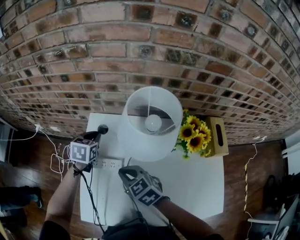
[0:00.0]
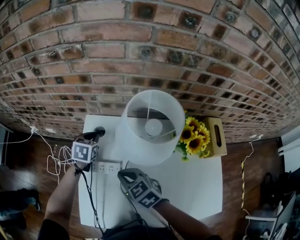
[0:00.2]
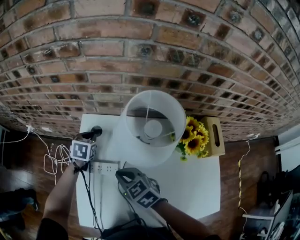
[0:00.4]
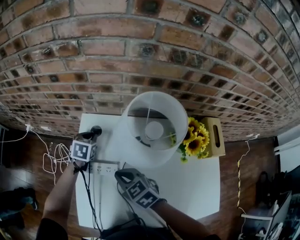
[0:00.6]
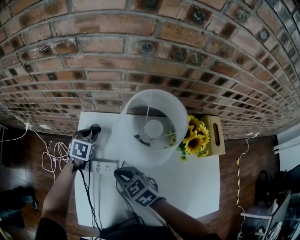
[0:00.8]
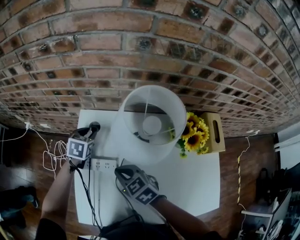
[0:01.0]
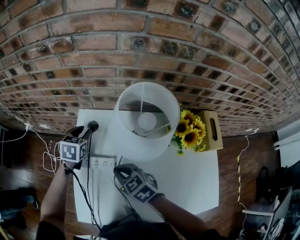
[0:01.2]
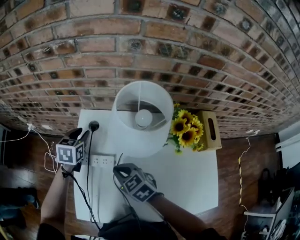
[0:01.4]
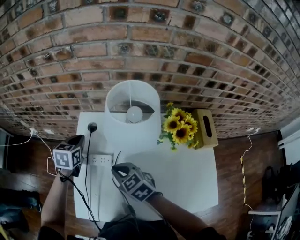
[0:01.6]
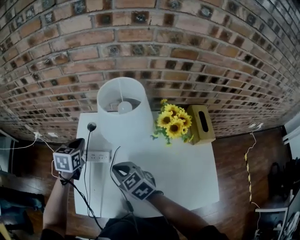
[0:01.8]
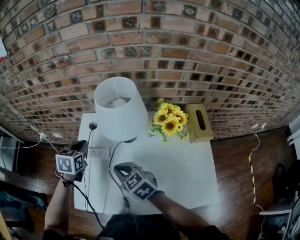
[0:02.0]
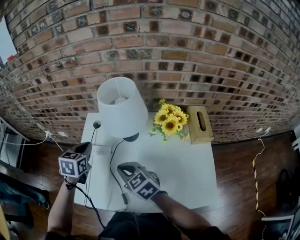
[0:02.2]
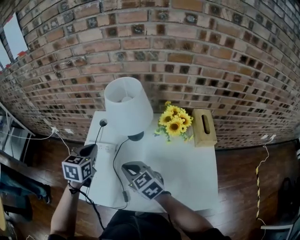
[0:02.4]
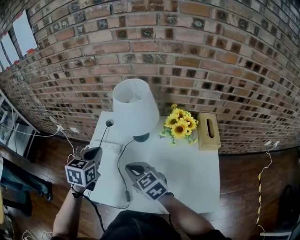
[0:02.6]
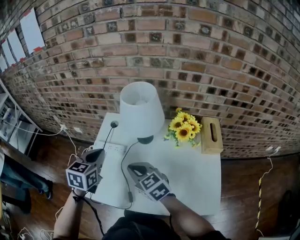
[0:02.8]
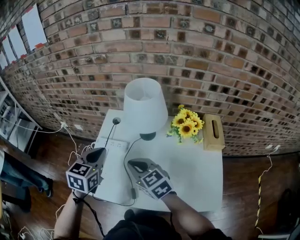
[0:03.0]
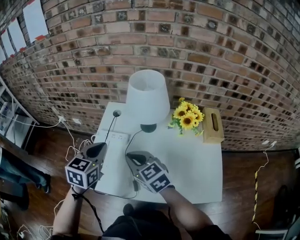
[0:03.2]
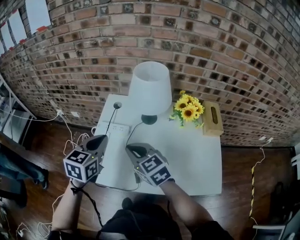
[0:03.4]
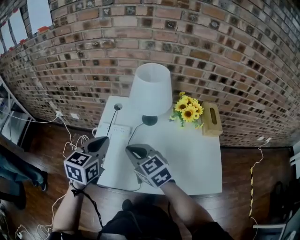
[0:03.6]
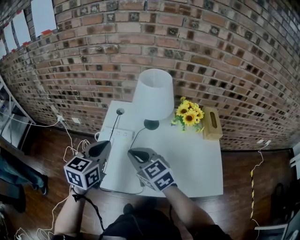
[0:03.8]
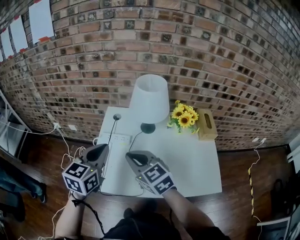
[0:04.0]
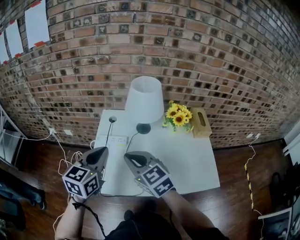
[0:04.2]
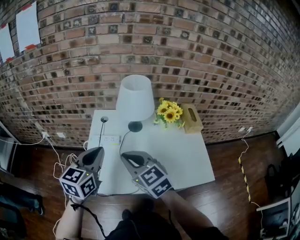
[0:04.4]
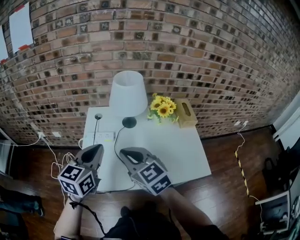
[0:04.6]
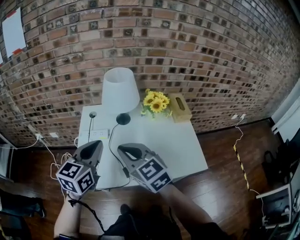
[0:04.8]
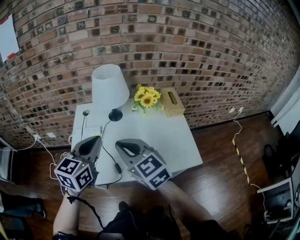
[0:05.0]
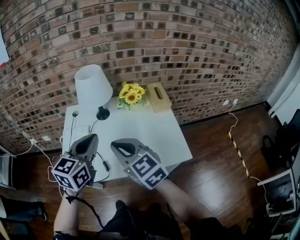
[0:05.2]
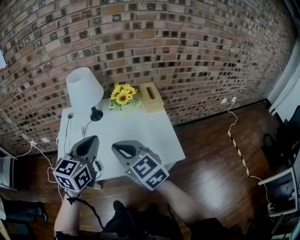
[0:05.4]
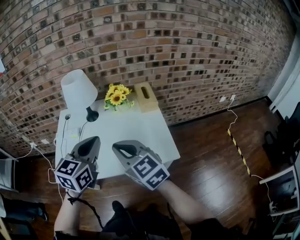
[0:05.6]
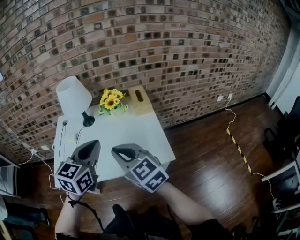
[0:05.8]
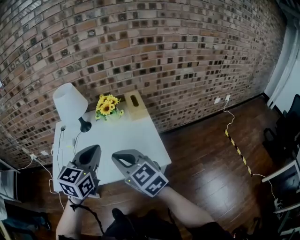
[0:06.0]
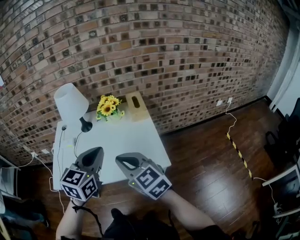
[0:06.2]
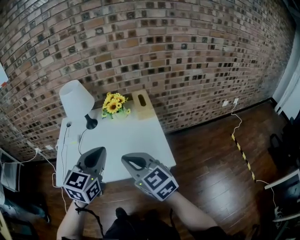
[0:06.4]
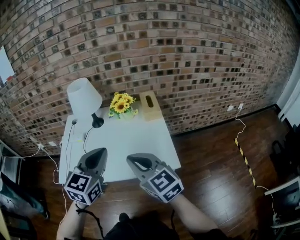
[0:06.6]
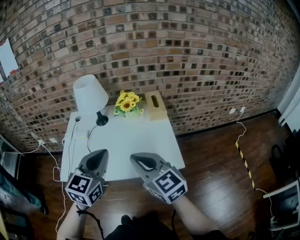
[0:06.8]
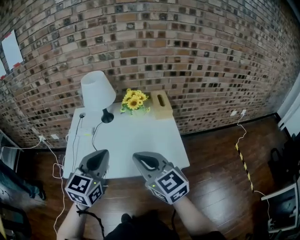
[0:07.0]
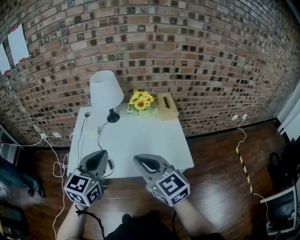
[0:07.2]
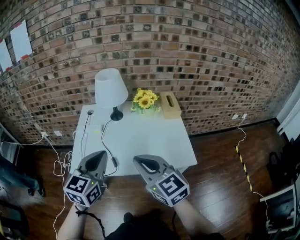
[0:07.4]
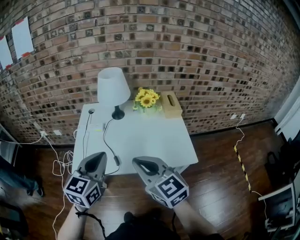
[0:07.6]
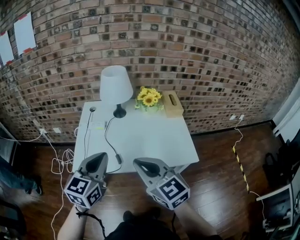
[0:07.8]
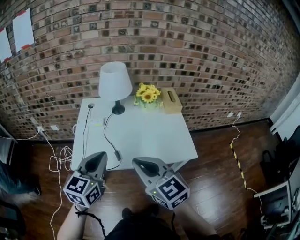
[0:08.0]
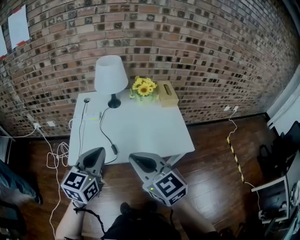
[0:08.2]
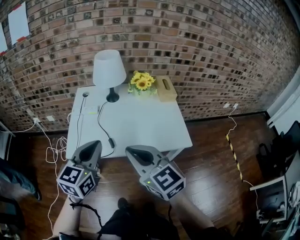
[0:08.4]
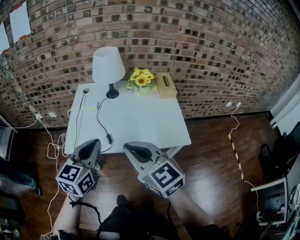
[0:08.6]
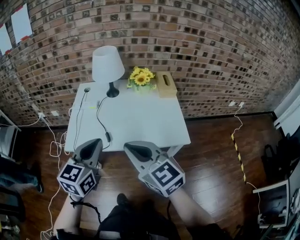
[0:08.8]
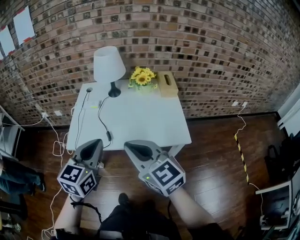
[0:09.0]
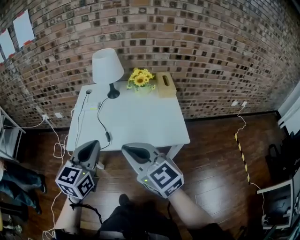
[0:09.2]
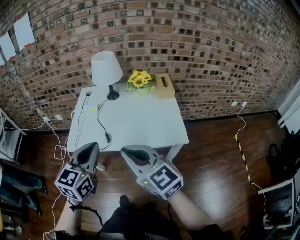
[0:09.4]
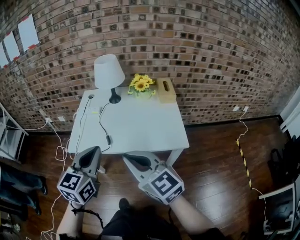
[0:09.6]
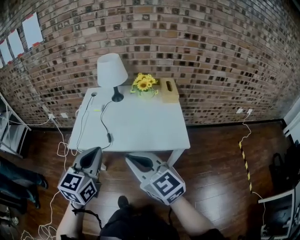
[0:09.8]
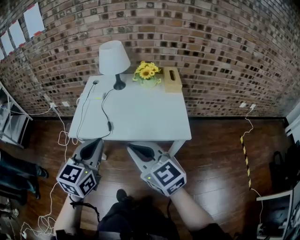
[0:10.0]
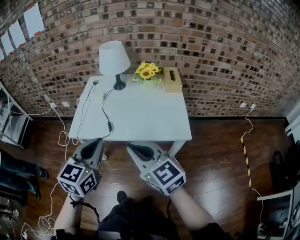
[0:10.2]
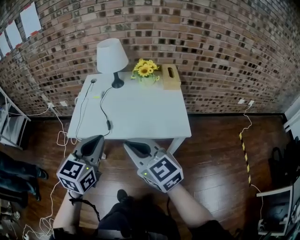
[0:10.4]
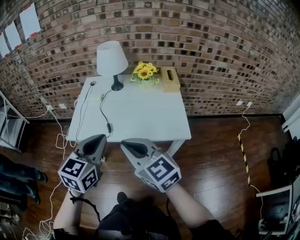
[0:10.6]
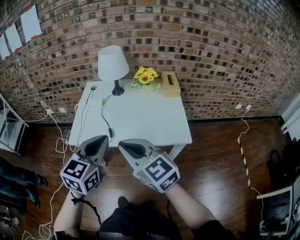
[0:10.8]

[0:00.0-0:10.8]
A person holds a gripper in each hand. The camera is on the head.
0:00.0 to 0:01.6: The left gripper travels downward and back again, roughly 5 cm each way, and opens, then closes again.
0:01.6 to 0:03.0: The right gripper goes approximately 15 cm backward and upward, while the left gripper is displaced backward and upward by some 25 cm.
0:03.0 to 0:04.6: The right gripper travels upward and backward by approximately 10 cm, while the left gripper moves backward and upward, some 10 cm, and turns by some 20 degrees.
0:04.6 to 0:06.2: The right gripper goes roughly 30 cm to the right and backward; the left gripper heads to the right, covering approximately 30 cm.
0:06.2 to 0:07.8: Both grippers move to the left, about 20 cm.
0:07.8 to 0:09.2: The two grippers go approximately 5 cm backward.
0:09.2 to 0:10.8: The grippers make only small movements.

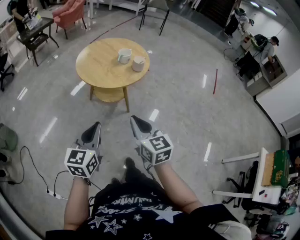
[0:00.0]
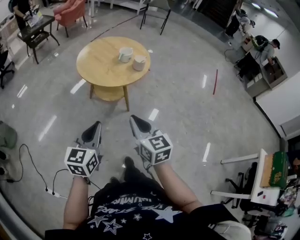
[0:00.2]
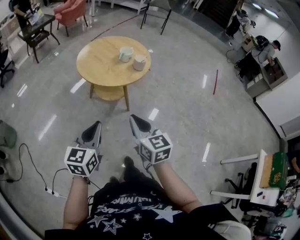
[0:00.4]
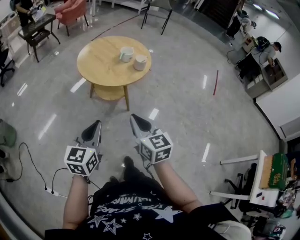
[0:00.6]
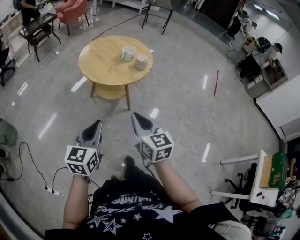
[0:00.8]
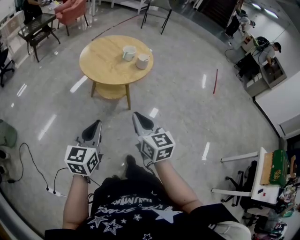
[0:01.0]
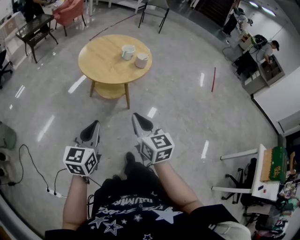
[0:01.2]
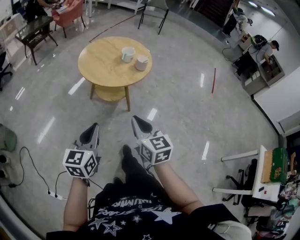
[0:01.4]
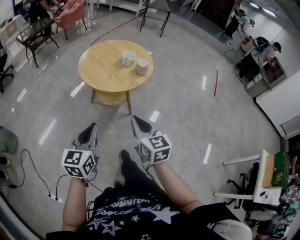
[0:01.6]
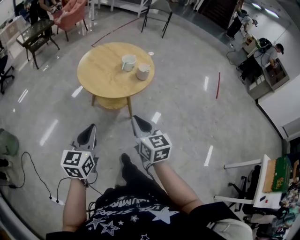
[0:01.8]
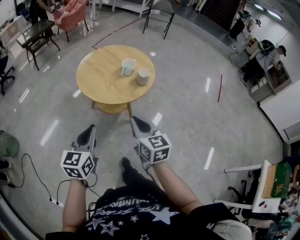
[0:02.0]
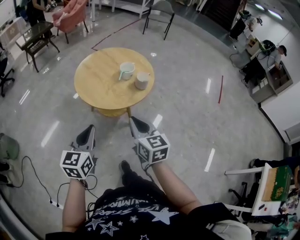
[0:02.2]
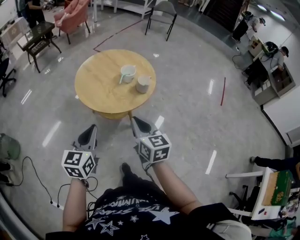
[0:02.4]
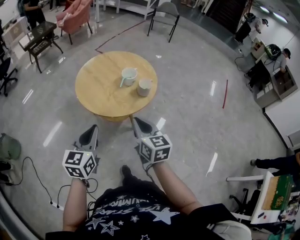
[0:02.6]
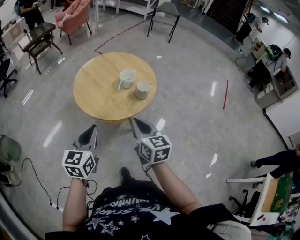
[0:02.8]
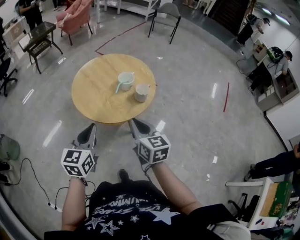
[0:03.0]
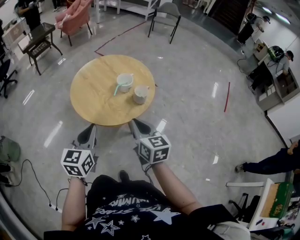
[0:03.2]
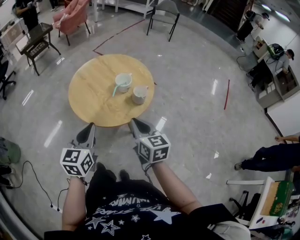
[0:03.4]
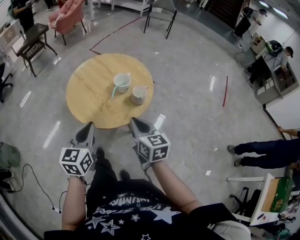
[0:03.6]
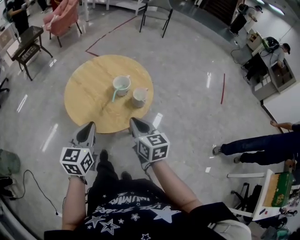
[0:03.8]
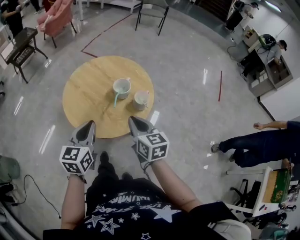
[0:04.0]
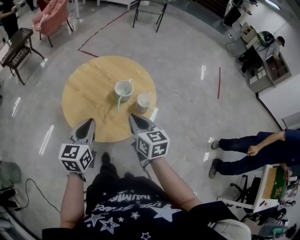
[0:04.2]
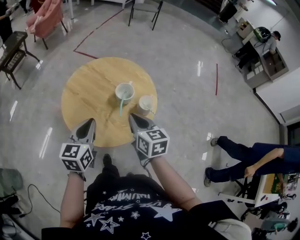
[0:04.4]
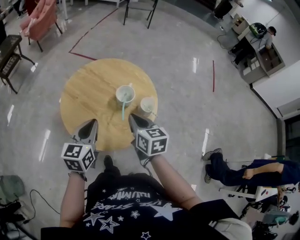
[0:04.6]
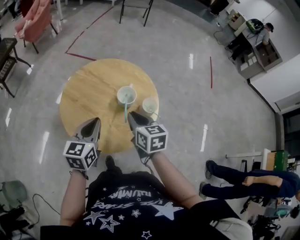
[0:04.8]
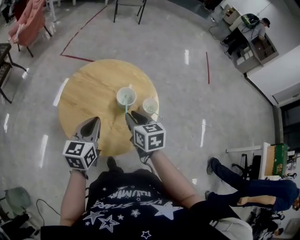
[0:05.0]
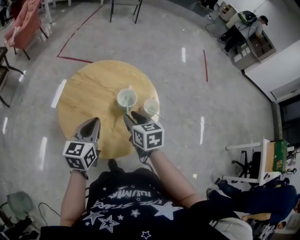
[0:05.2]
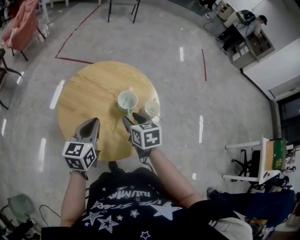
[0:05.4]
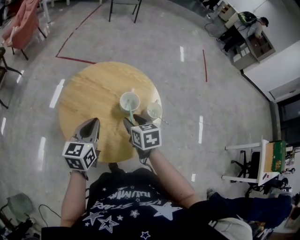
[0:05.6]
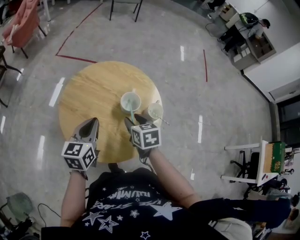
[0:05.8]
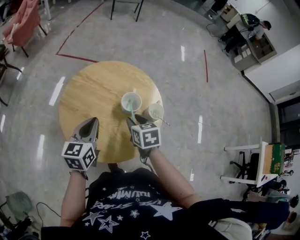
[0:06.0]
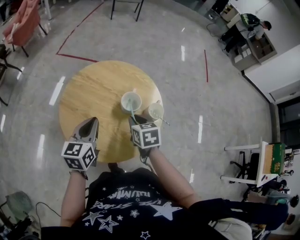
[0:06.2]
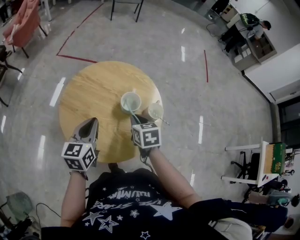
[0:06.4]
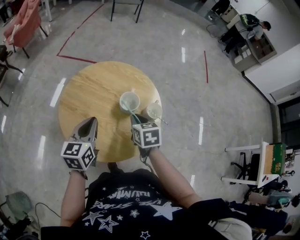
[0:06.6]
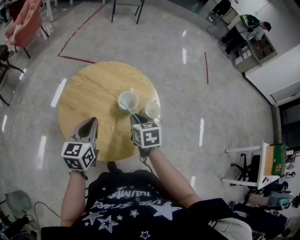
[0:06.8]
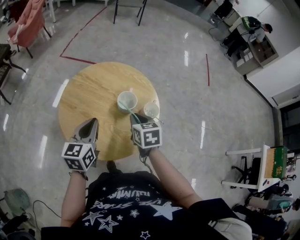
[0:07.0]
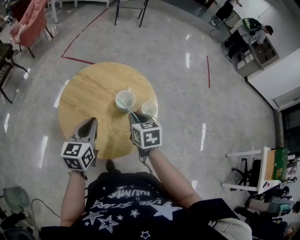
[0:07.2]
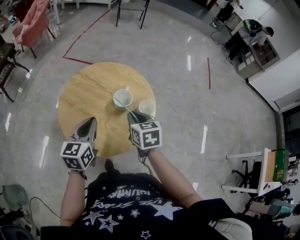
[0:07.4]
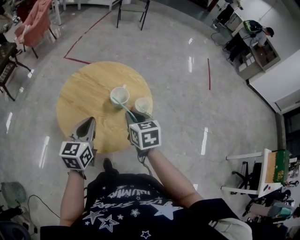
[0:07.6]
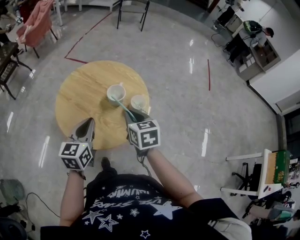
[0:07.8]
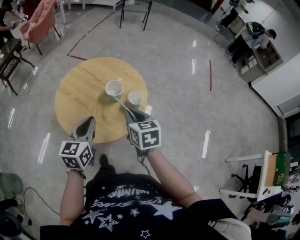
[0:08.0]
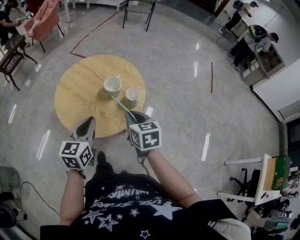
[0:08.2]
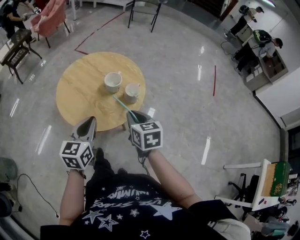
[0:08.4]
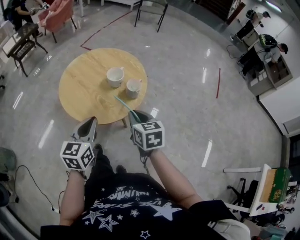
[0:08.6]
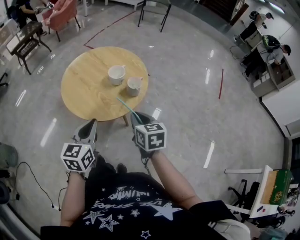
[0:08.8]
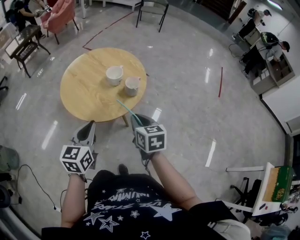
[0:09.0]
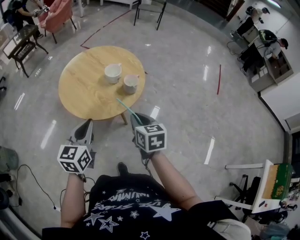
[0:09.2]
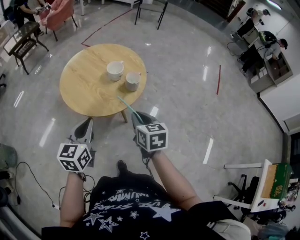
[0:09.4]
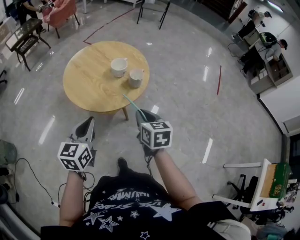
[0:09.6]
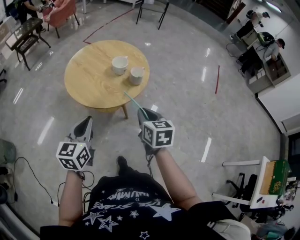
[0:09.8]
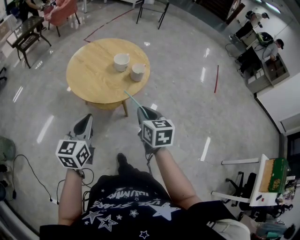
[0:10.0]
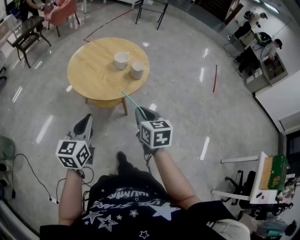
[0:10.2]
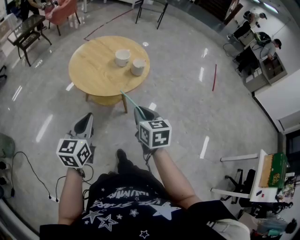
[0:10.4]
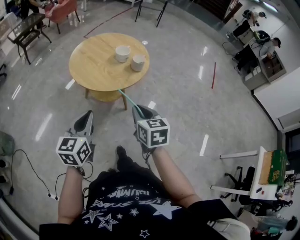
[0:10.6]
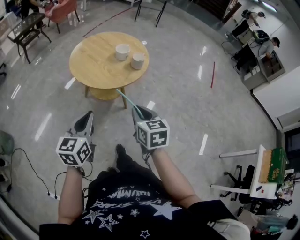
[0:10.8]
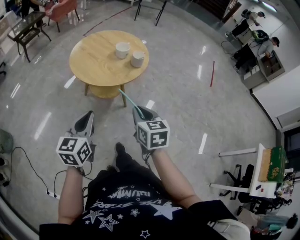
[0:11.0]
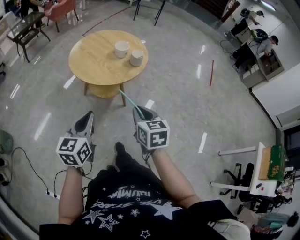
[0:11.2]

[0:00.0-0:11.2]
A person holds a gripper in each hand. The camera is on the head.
0:00.0 to 0:01.6: The left gripper travels to the left by some 5 cm, while the right gripper changes place by about 5 cm.
0:01.6 to 0:03.2: The two grippers go about 25 cm forward and to the right.
0:03.2 to 0:04.8: The left gripper travels forward by roughly 25 cm, and changes its angle by approximately 20 degrees. The right gripper goes approximately 20 cm forward and to the left, and turns by some 20 degrees.
0:04.8 to 0:06.4: The right gripper heads downward and forward, covering roughly 10 cm, and opens, then closes once more; the left gripper goes about 5 cm forward.
0:06.4 to 0:08.0: The right gripper shifts about 15 cm backward, to the right and upward. The left gripper shifts roughly 20 cm backward and to the right.
0:08.0 to 0:09.6: The two grippers go approximately 15 cm backward.
0:09.6 to 0:11.2: The grippers both shift backward by about 15 cm.

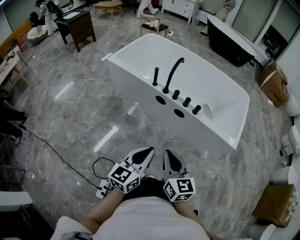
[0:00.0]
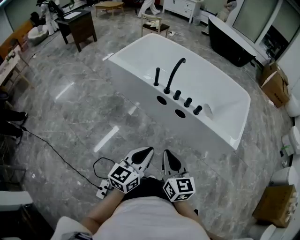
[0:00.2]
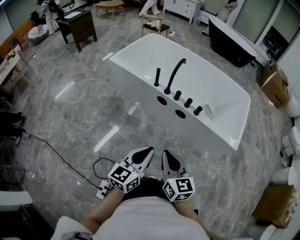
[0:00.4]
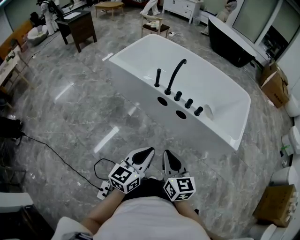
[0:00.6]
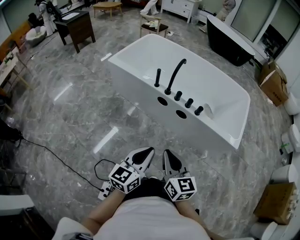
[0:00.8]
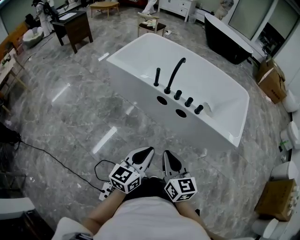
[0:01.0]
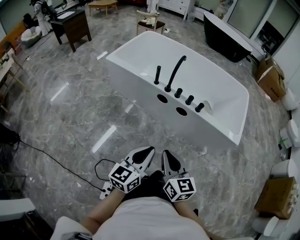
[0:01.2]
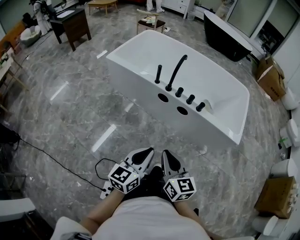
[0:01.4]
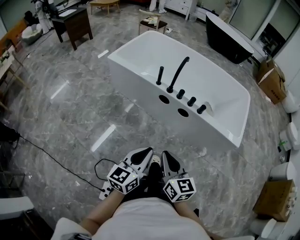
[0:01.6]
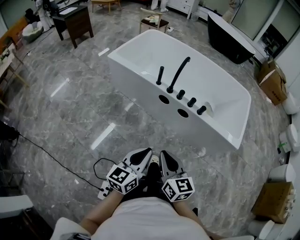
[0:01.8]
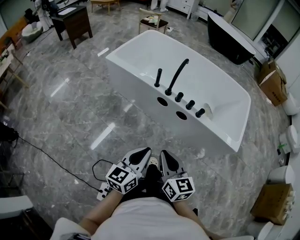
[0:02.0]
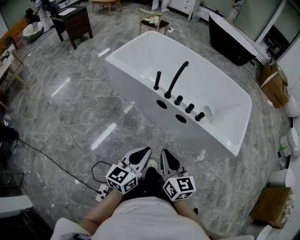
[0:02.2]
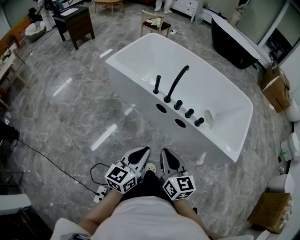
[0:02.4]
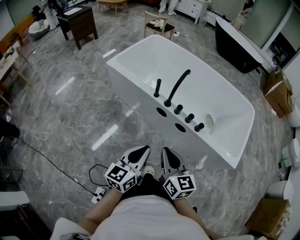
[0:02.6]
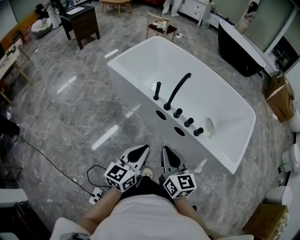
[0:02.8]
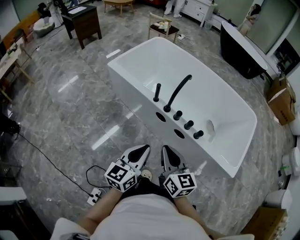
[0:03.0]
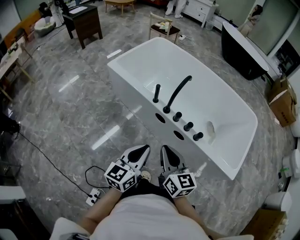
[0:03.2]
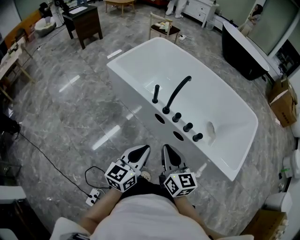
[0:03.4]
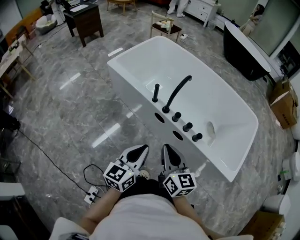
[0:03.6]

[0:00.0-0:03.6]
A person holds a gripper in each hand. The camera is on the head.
0:00.0 to 0:01.8: Both grippers move to the left, some 5 cm.
0:01.8 to 0:03.6: The right gripper is displaced forward and to the right by roughly 20 cm; the left gripper moves forward, some 20 cm.
